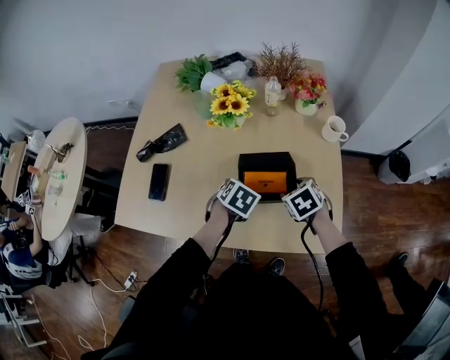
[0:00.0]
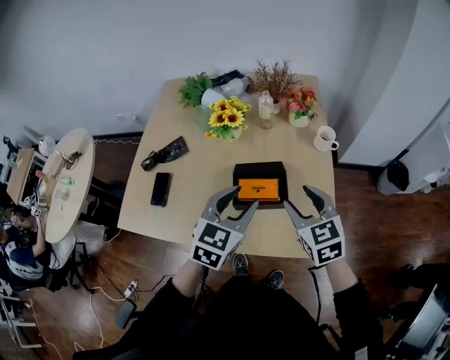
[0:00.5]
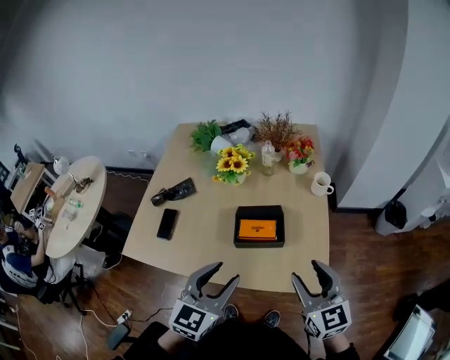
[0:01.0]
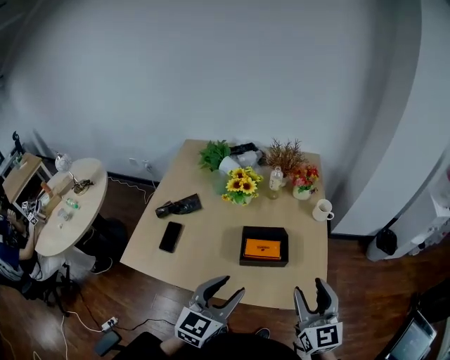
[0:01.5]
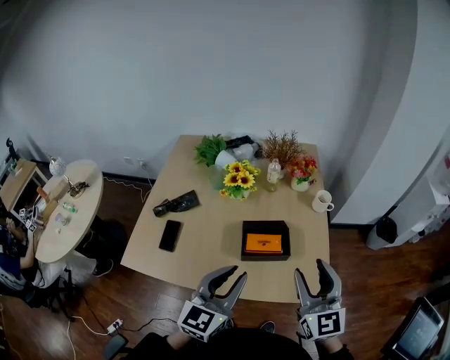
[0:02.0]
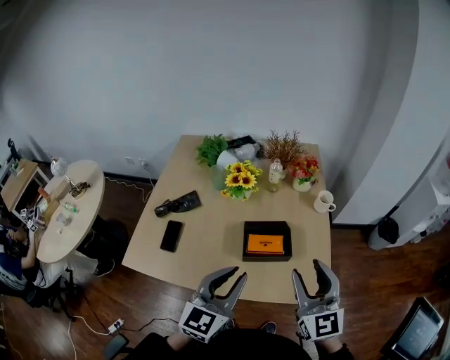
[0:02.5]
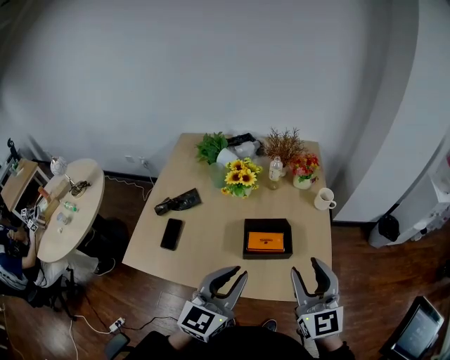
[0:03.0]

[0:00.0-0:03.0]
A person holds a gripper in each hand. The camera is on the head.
0:00.0 to 0:01.5: The grippers both shift upward and backward by approximately 30 cm. The left gripper points its fingers about 50 degrees further upward; the right gripper angles its fingers upward, by some 60 degrees.
0:01.5 to 0:03.0: The right gripper moves roughly 5 cm.

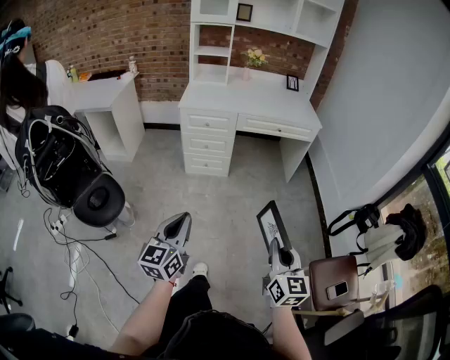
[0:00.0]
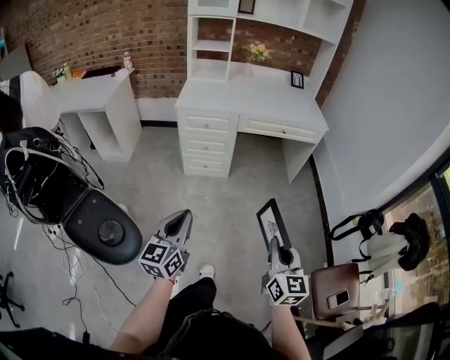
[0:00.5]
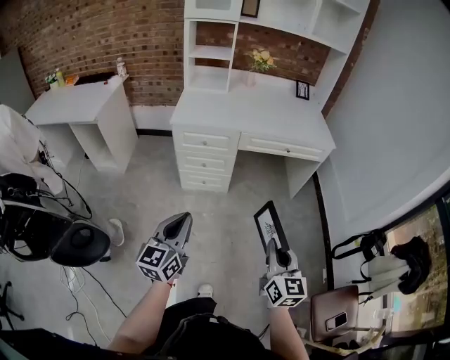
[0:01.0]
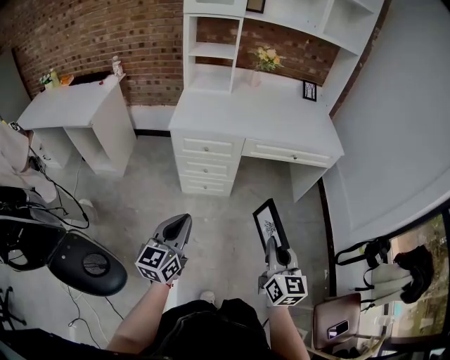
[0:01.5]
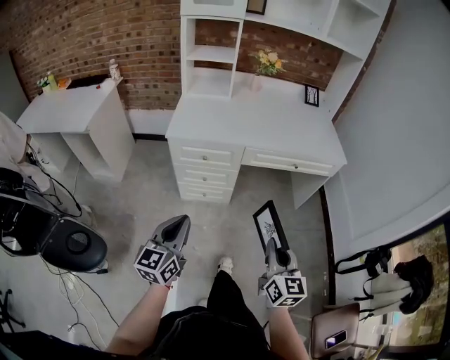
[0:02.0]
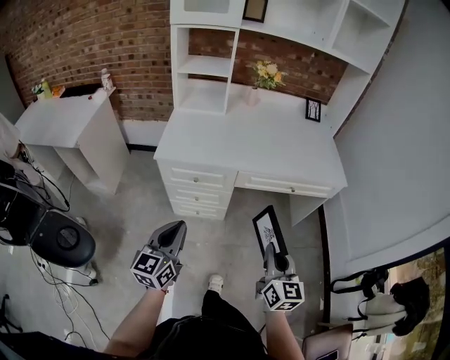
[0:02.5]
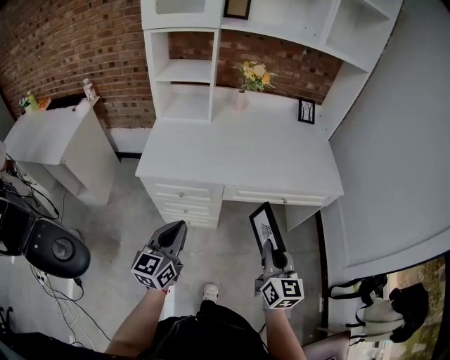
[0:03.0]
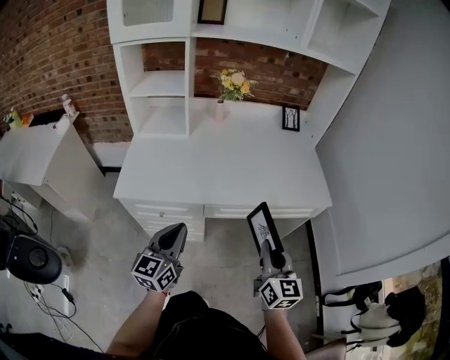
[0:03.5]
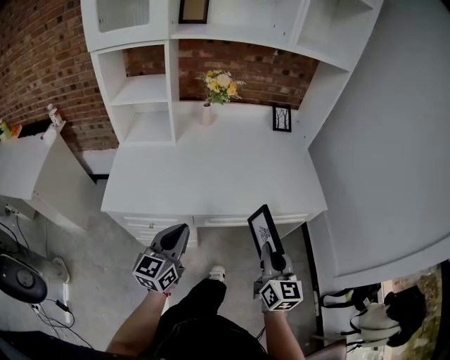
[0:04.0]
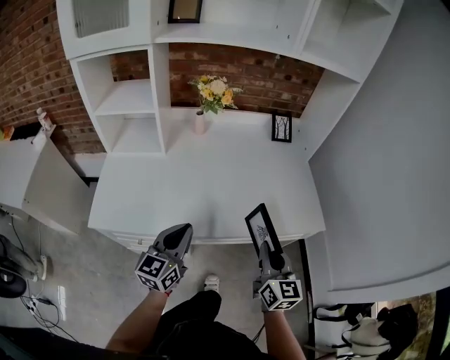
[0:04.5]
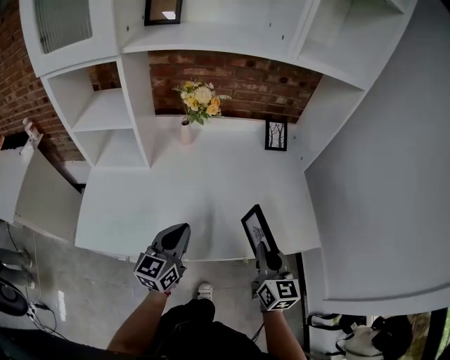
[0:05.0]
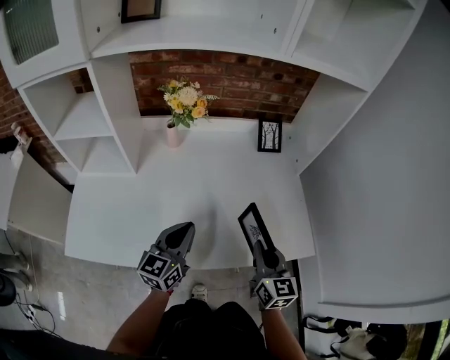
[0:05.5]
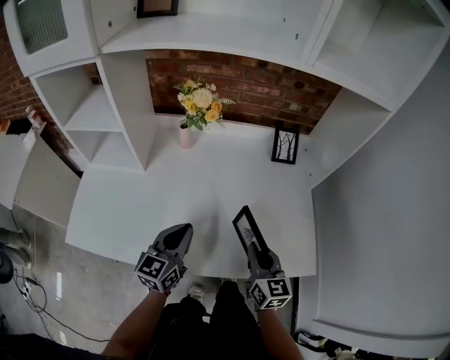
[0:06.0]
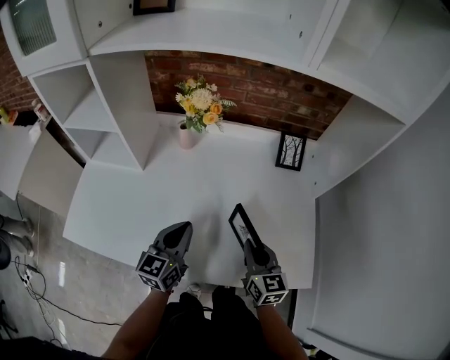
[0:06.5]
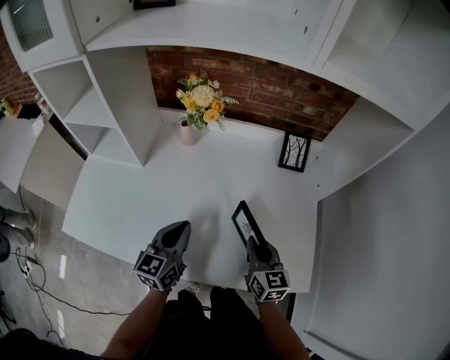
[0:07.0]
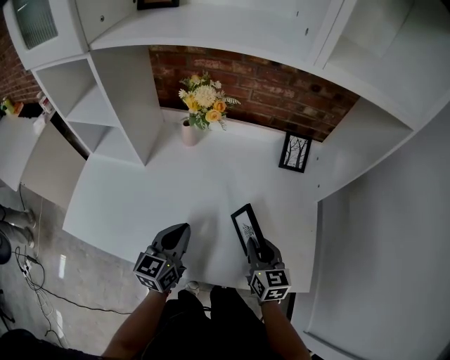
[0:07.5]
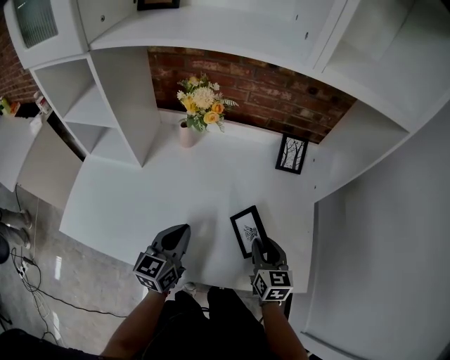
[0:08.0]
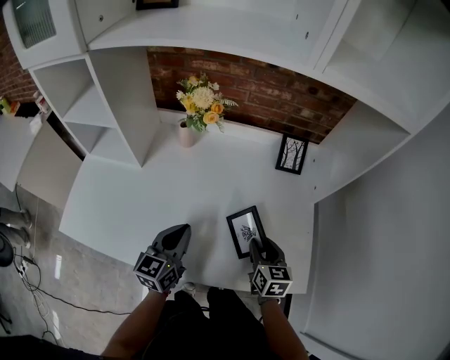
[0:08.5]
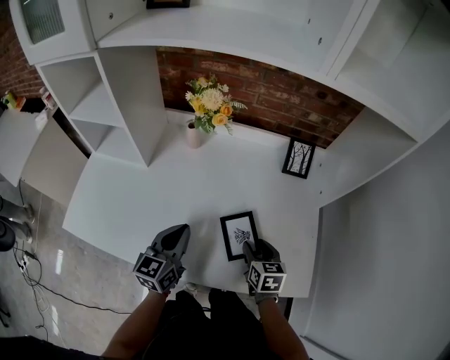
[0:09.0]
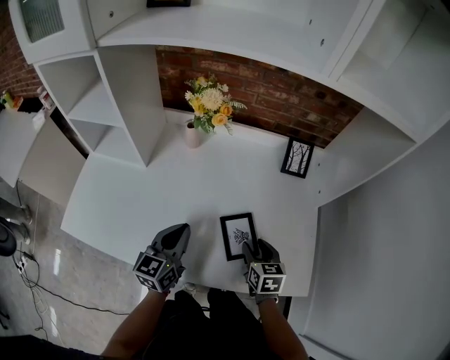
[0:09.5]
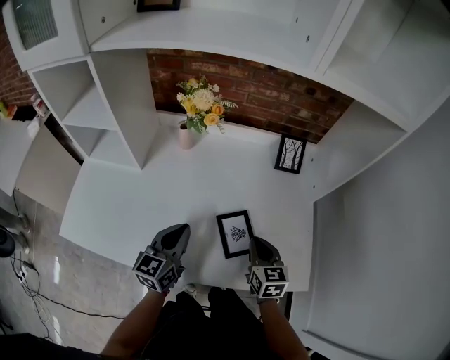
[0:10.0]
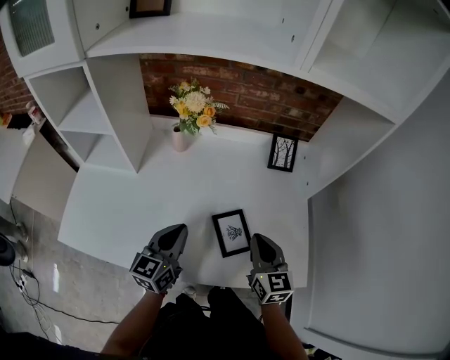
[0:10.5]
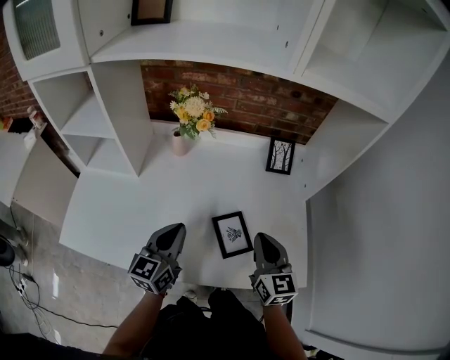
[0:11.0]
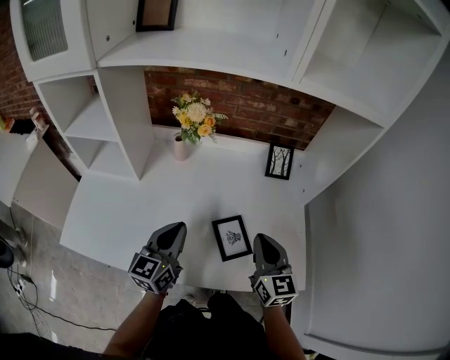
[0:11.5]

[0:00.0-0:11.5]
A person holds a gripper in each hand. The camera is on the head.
0:00.0 to 0:02.0: Both grippers travel together forward, about 35 cm.
0:02.0 to 0:04.0: The grippers both shift forward by about 35 cm.
0:04.0 to 0:06.0: Both grippers move forward, about 25 cm.
0:06.0 to 0:07.5: The right gripper heads forward, covering about 5 cm.
0:07.5 to 0:09.5: The right gripper heads downward, covering approximately 5 cm, and opens.
0:09.5 to 0:11.5: The right gripper moves upward, about 15 cm, tips its fingers upward by some 30 degrees, and closes up. Meanwhile the left gripper moves upward, some 5 cm.

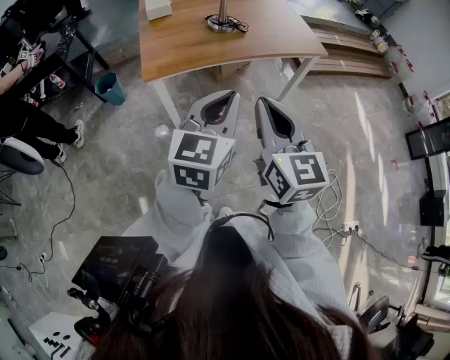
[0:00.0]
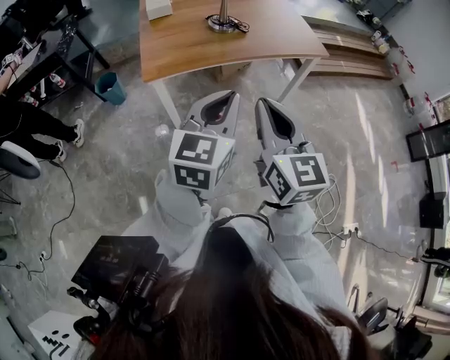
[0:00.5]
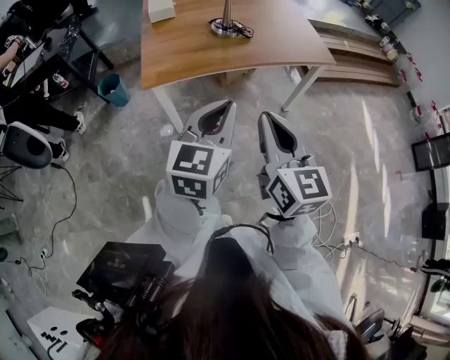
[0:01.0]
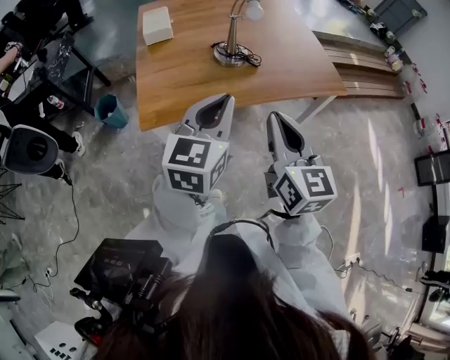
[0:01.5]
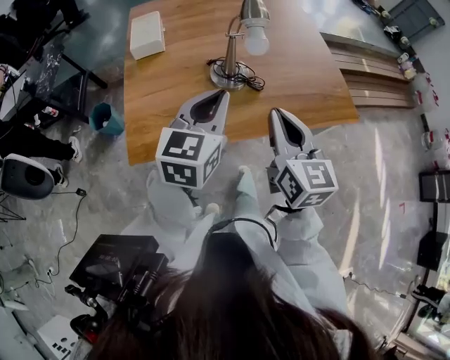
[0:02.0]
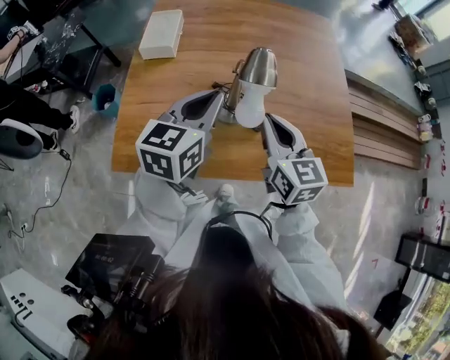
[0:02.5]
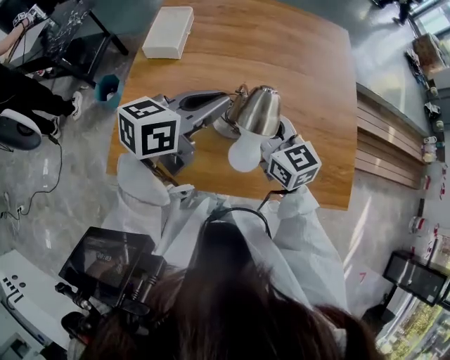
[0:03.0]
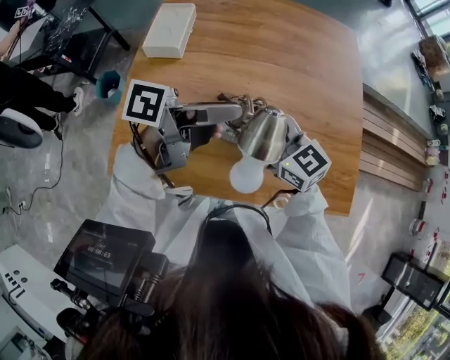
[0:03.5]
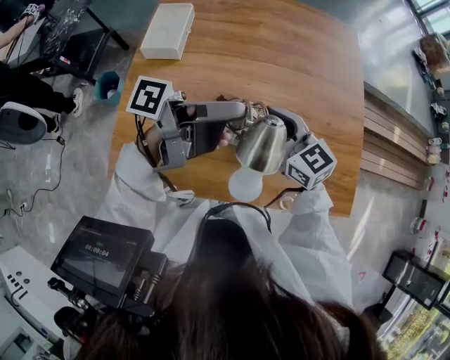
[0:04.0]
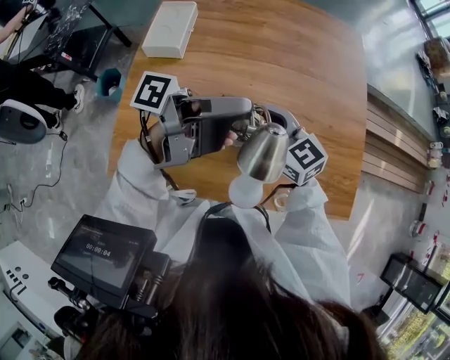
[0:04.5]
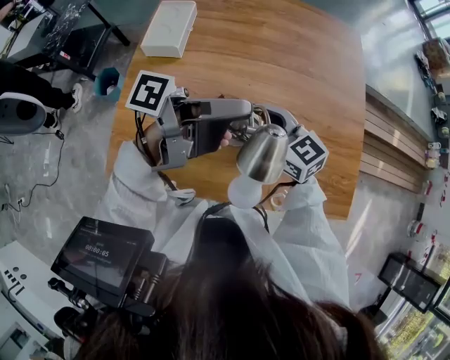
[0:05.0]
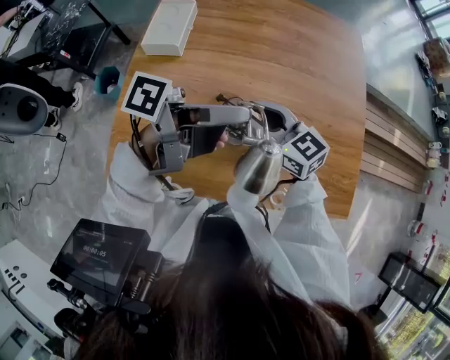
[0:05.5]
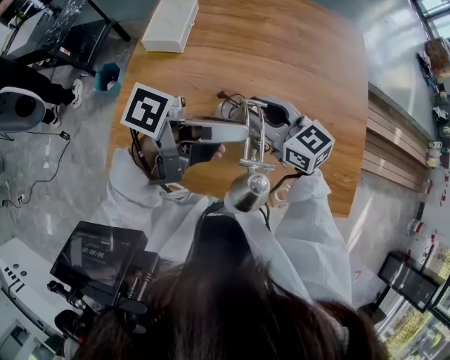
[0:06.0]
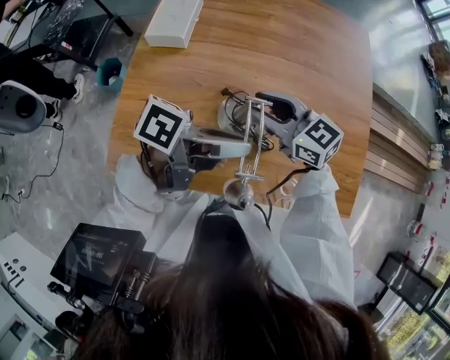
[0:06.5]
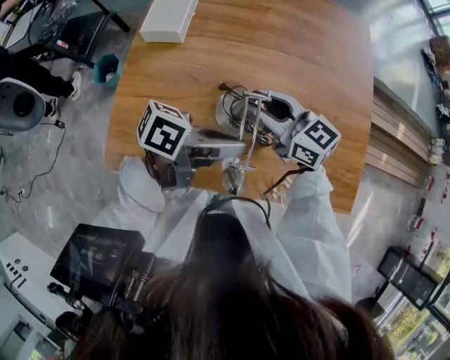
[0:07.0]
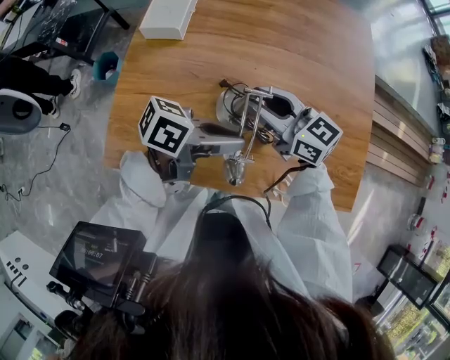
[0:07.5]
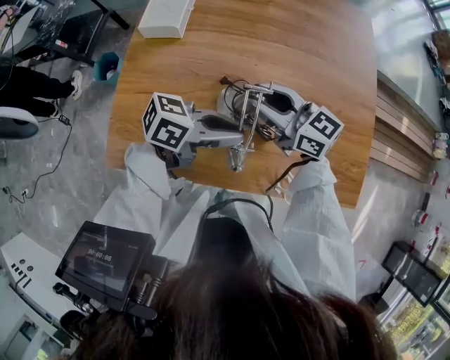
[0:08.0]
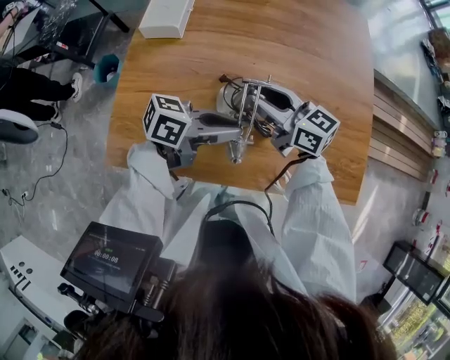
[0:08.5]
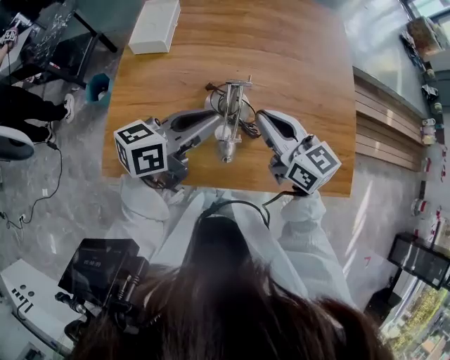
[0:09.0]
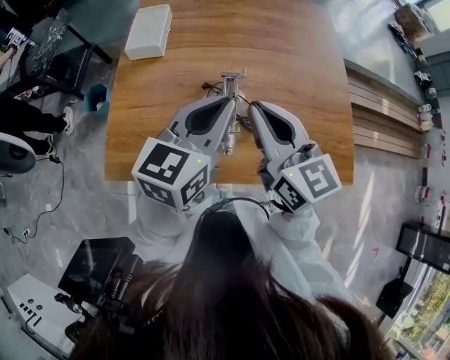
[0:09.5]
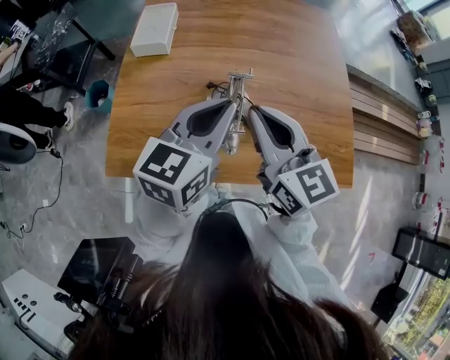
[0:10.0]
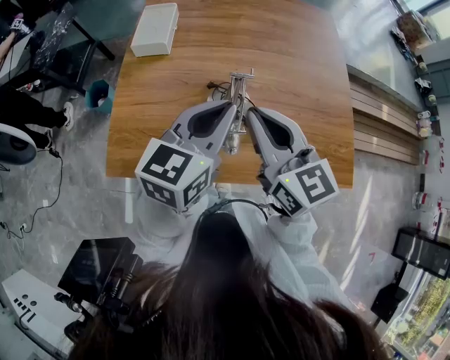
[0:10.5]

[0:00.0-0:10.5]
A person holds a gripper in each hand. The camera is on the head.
0:00.0 to 0:02.0: Both grippers are carried forward, about 40 cm.
0:02.0 to 0:04.0: The left gripper moves some 20 cm, rolls counterclockwise, seen from behind, by roughly 70 degrees, and opens its fingers. The right gripper changes place by some 30 cm, turns by approximately 50 degrees, and opens its fingers.
0:04.0 to 0:06.5: The left gripper shifts by roughly 5 cm, turns by some 20 degrees, and closes its fingers.
0:06.5 to 0:08.5: The left gripper is displaced downward by some 5 cm, and swivels some 20 degrees.
0:08.5 to 0:10.5: The grippers both shift upward by roughly 15 cm. The left gripper swivels some 50 degrees. Meanwhile the right gripper swivels approximately 30 degrees, and closes.

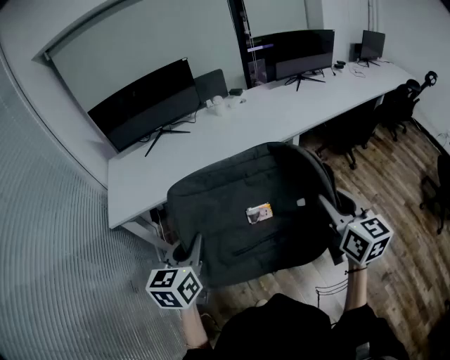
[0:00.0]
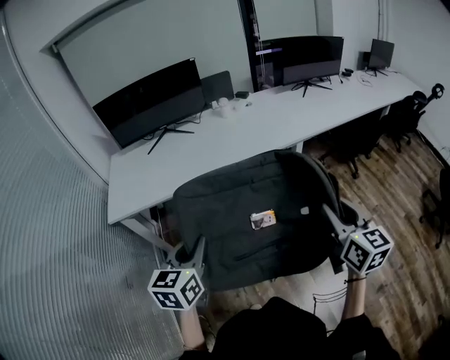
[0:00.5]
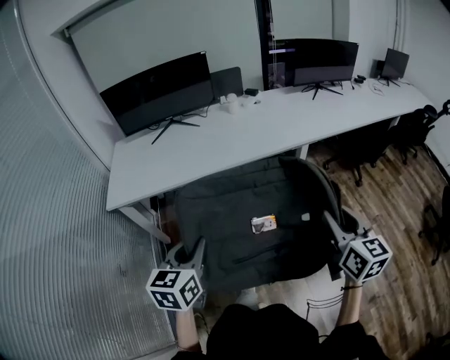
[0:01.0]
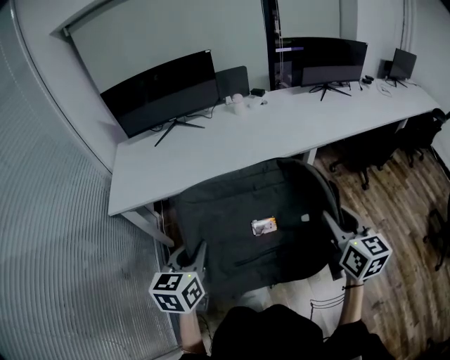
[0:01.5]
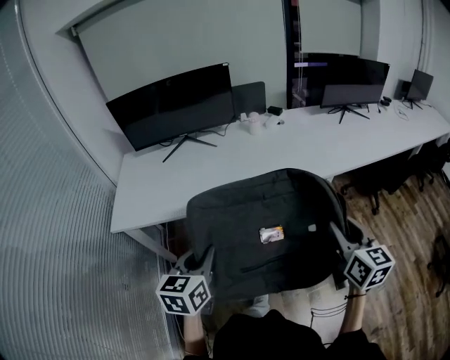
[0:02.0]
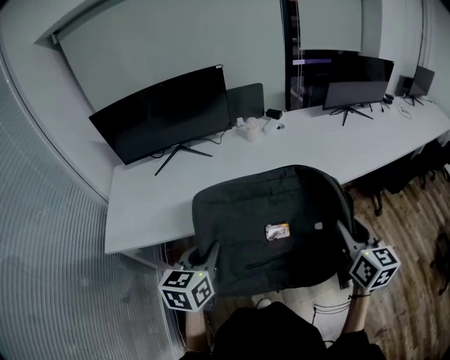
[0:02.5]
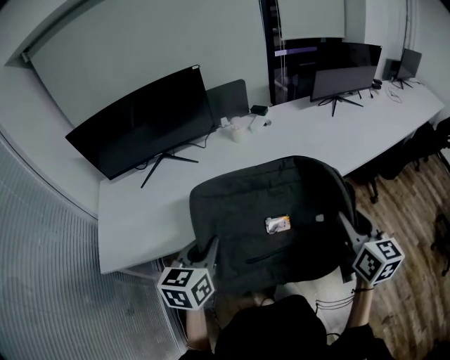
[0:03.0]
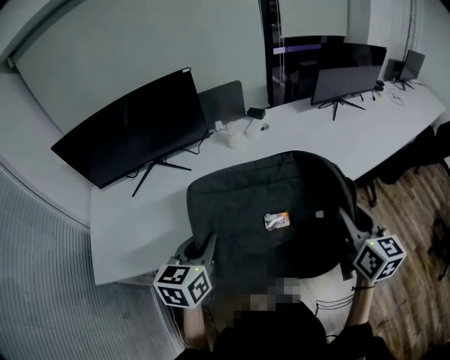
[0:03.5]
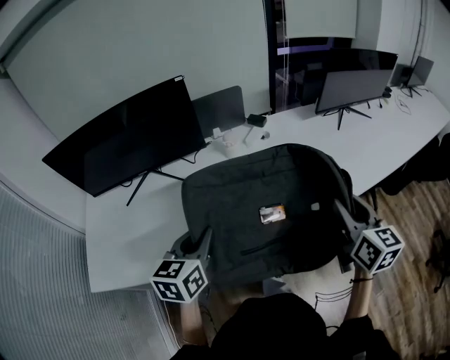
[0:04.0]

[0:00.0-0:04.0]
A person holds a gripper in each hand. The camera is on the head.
0:00.0 to 0:02.0: Both grippers move forward, roughly 15 cm.
0:02.0 to 0:04.0: Both grippers travel together forward, approximately 30 cm.
